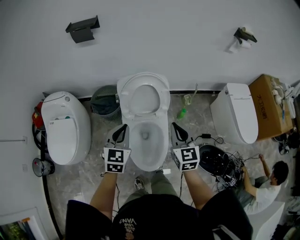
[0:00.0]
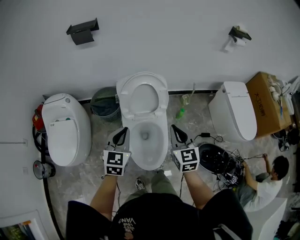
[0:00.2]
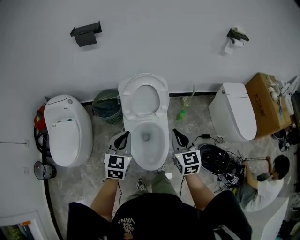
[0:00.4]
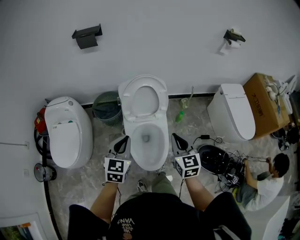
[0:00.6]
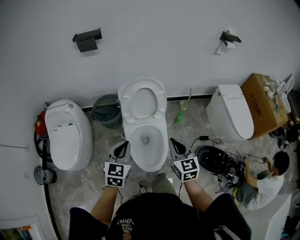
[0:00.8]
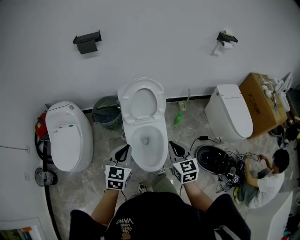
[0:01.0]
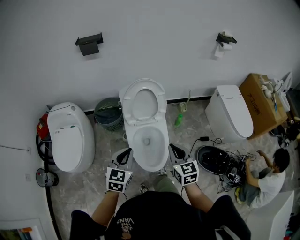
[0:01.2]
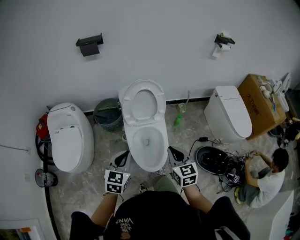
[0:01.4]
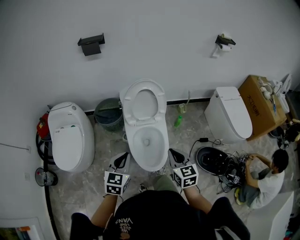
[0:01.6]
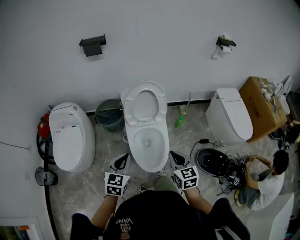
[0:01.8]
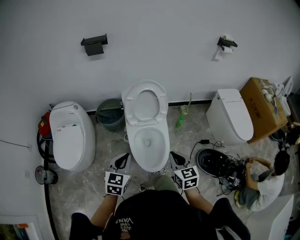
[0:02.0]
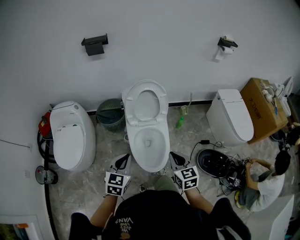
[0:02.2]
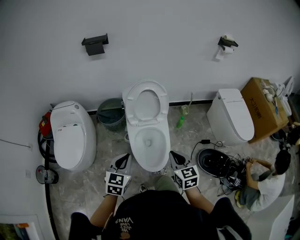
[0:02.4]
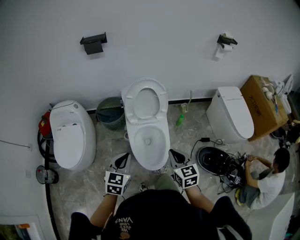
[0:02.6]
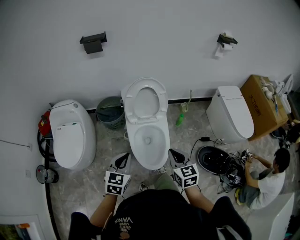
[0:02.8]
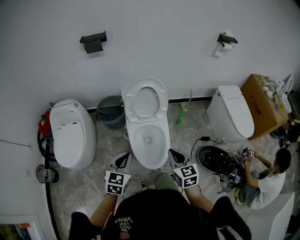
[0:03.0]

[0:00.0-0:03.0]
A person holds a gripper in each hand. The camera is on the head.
0:00.0 to 0:01.6: Both grippers travel together backward, roughly 20 cm.
0:01.6 to 0:03.0: The grippers move only a little.

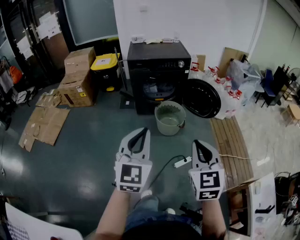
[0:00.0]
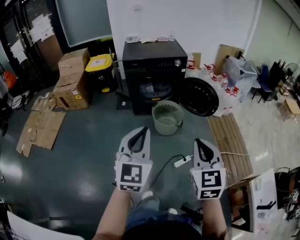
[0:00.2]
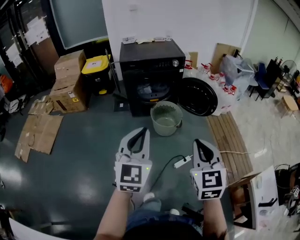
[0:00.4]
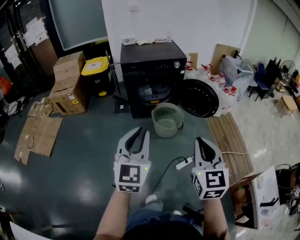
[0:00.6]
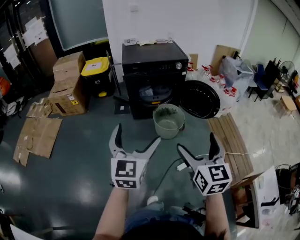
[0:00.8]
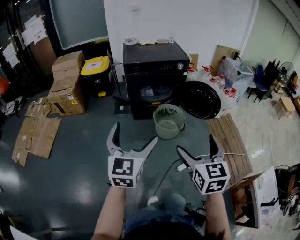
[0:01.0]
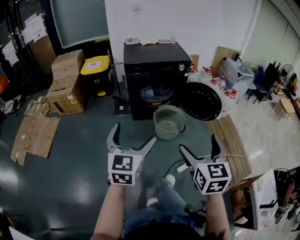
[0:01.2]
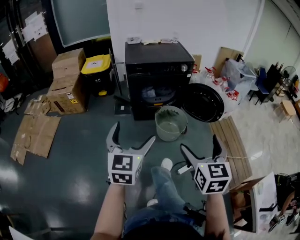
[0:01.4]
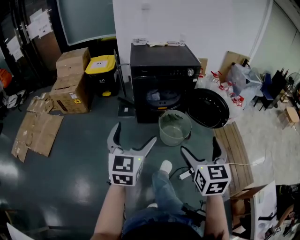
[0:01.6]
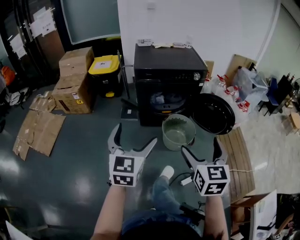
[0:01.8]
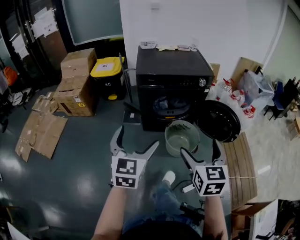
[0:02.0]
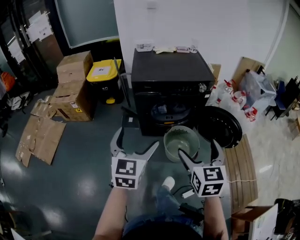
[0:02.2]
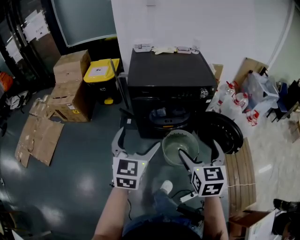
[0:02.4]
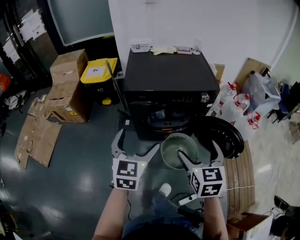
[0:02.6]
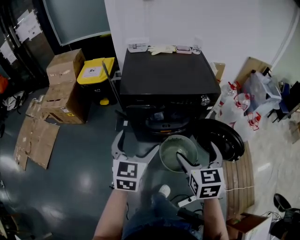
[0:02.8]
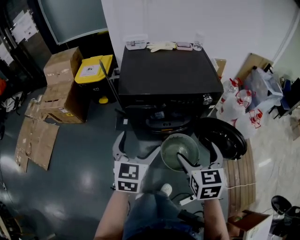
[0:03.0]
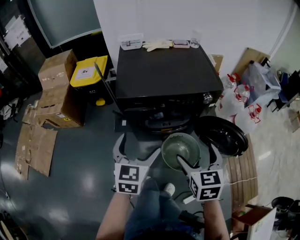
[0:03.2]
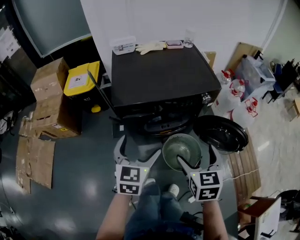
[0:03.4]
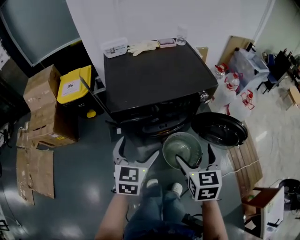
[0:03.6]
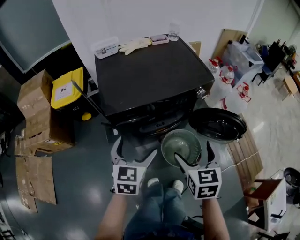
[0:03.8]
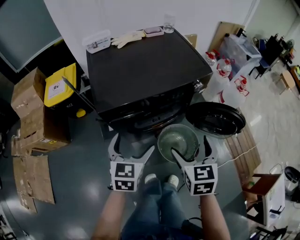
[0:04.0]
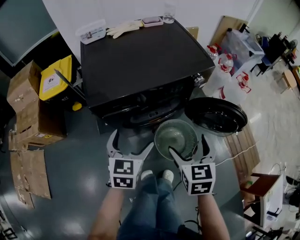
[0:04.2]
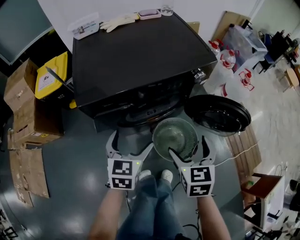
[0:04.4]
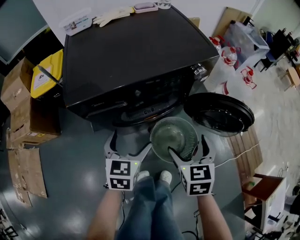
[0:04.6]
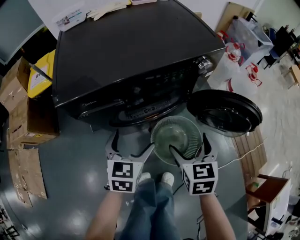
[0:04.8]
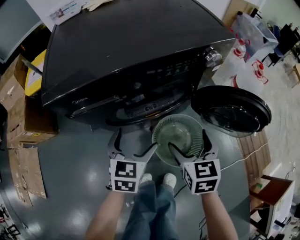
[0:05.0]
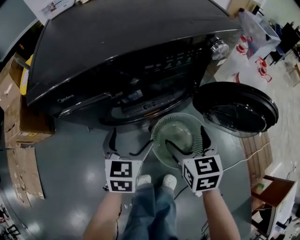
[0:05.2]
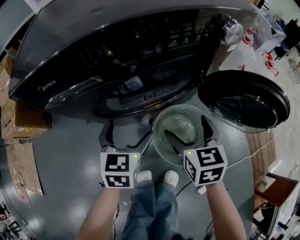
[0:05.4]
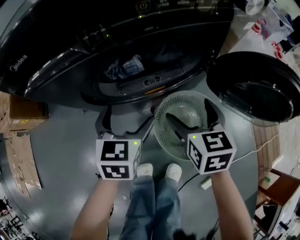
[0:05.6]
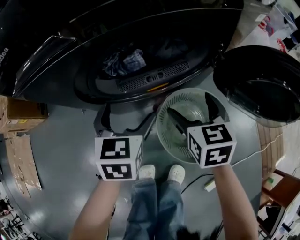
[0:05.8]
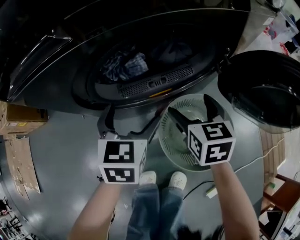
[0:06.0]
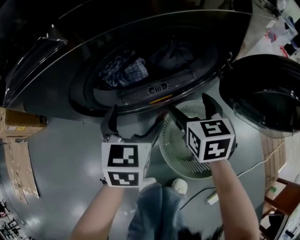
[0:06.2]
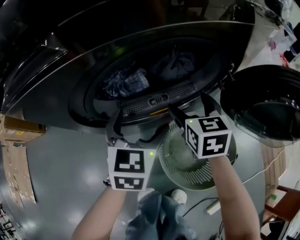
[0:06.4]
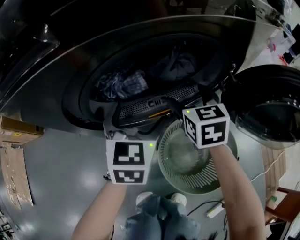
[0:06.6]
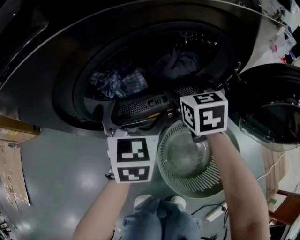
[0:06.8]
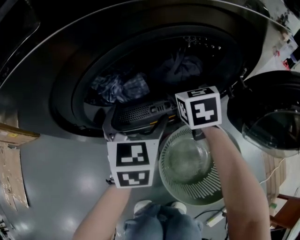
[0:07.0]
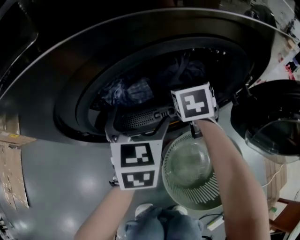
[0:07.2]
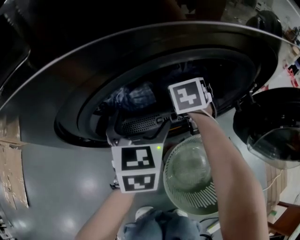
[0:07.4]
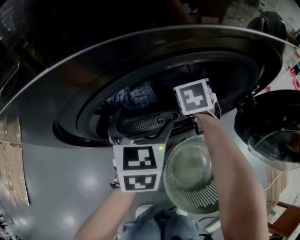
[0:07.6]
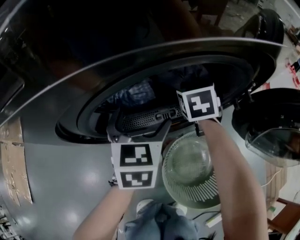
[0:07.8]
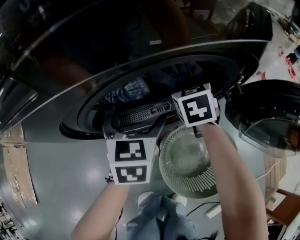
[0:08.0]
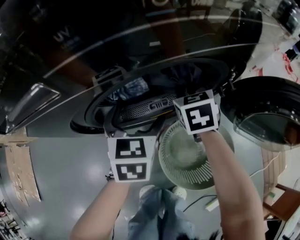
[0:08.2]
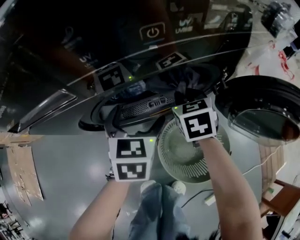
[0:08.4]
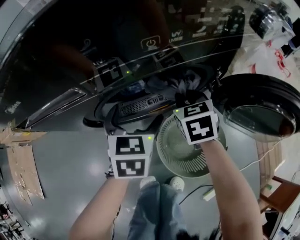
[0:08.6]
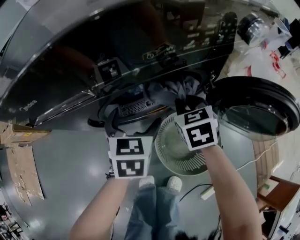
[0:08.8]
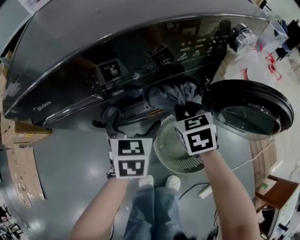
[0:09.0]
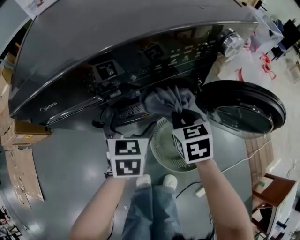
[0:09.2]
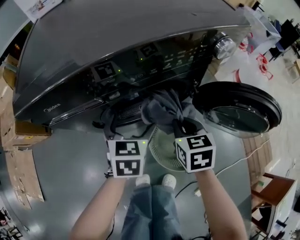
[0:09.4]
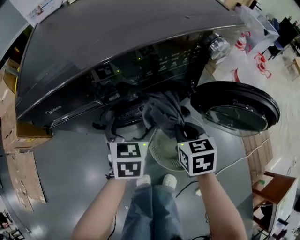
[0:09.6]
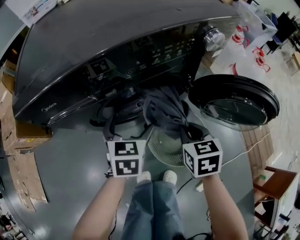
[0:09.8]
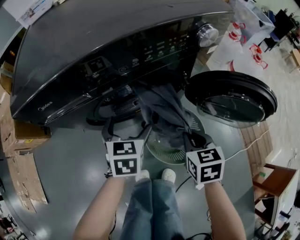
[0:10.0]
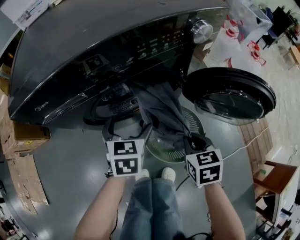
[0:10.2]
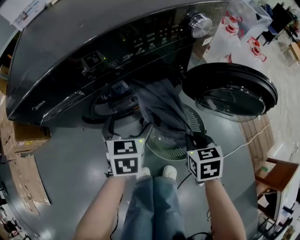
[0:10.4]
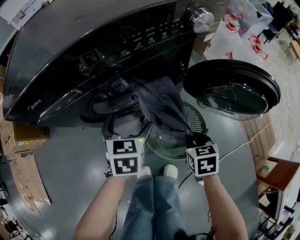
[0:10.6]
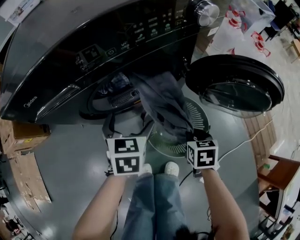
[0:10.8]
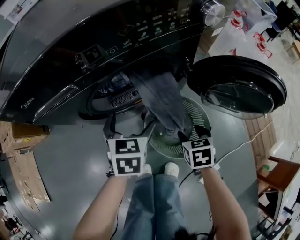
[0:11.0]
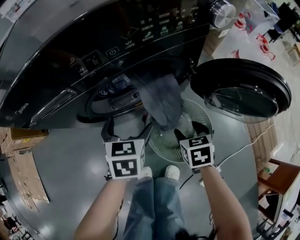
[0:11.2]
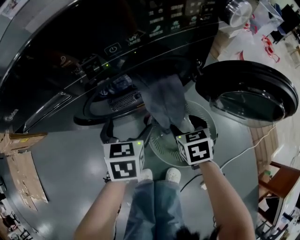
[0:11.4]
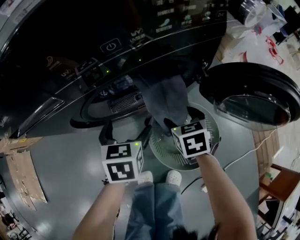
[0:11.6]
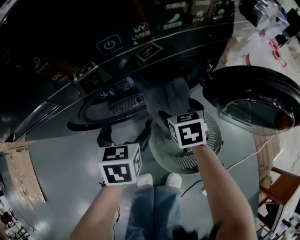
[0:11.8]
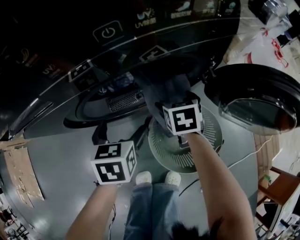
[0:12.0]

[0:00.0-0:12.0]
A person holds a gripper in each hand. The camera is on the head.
0:00.0 to 0:01.6: Both grippers move forward and to the left, roughly 20 cm. The right gripper opens. The left gripper opens up.
0:01.6 to 0:03.0: The two grippers go approximately 40 cm forward.
0:03.0 to 0:04.4: Both grippers travel together downward and forward, about 15 cm.
0:04.4 to 0:06.0: The right gripper moves downward and forward, about 40 cm; the left gripper shifts approximately 30 cm downward.
0:06.0 to 0:07.6: The right gripper moves forward and downward, about 25 cm, swivels about 20 degrees, and closes its fingers; the left gripper shifts roughly 10 cm forward.
0:07.6 to 0:09.0: The right gripper moves backward and upward, about 25 cm. The left gripper heads upward and backward, covering roughly 15 cm.
0:09.0 to 0:10.4: The right gripper moves backward and to the right, some 20 cm; the left gripper shifts by roughly 5 cm.
0:10.4 to 0:12.0: The right gripper goes approximately 25 cm forward, downward and to the left, and opens. The left gripper shifts roughly 10 cm downward and to the left.

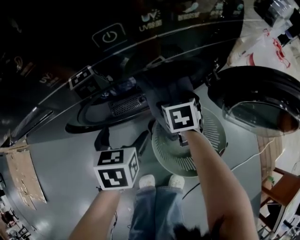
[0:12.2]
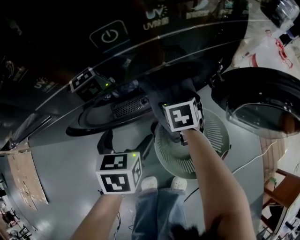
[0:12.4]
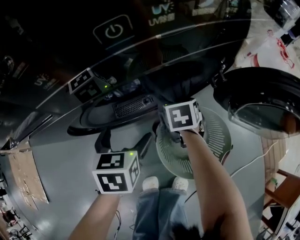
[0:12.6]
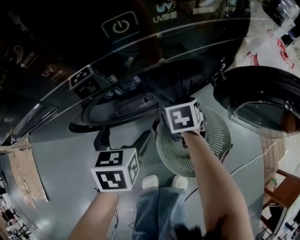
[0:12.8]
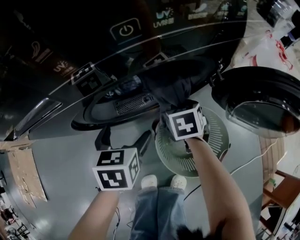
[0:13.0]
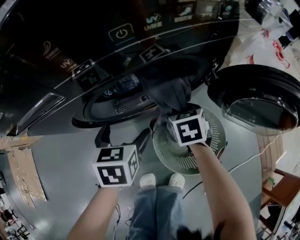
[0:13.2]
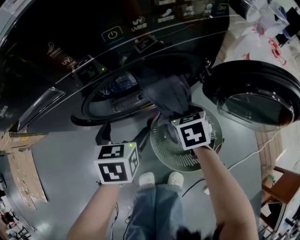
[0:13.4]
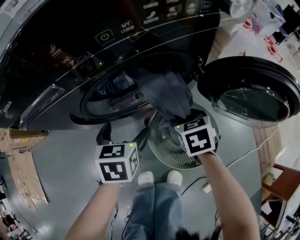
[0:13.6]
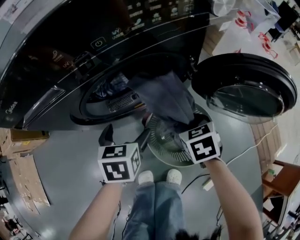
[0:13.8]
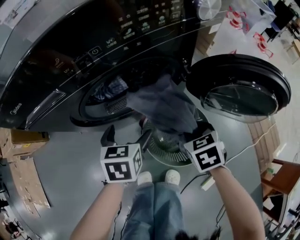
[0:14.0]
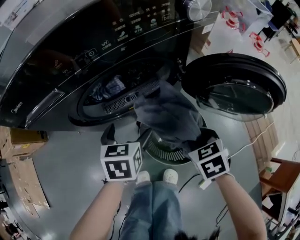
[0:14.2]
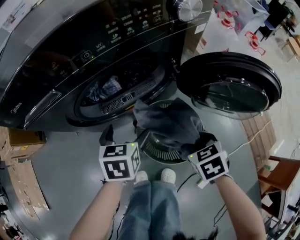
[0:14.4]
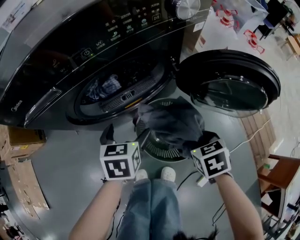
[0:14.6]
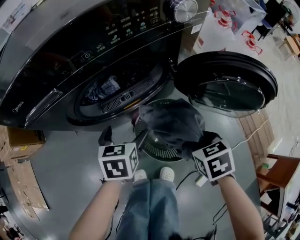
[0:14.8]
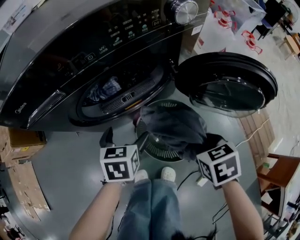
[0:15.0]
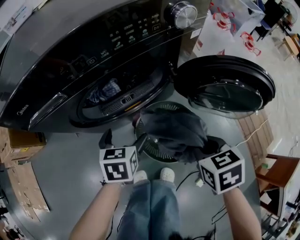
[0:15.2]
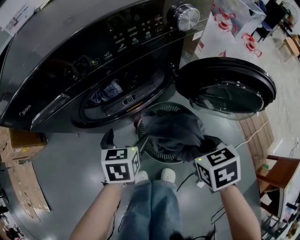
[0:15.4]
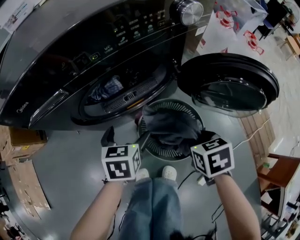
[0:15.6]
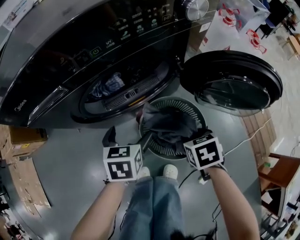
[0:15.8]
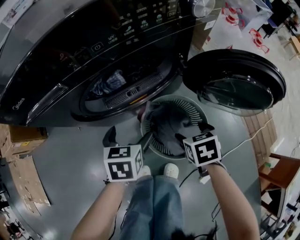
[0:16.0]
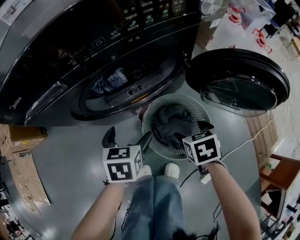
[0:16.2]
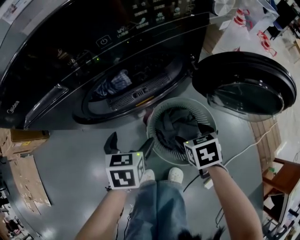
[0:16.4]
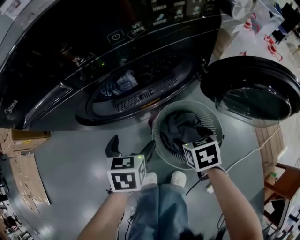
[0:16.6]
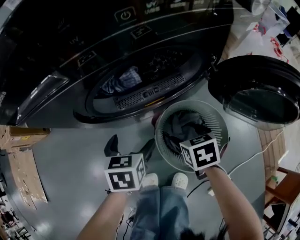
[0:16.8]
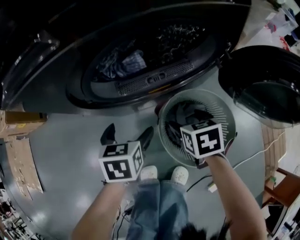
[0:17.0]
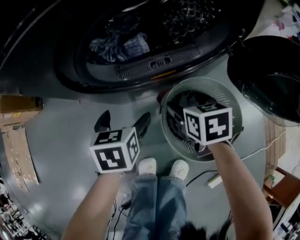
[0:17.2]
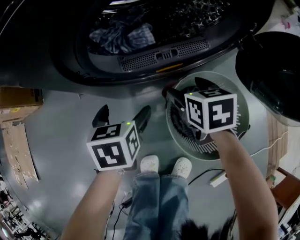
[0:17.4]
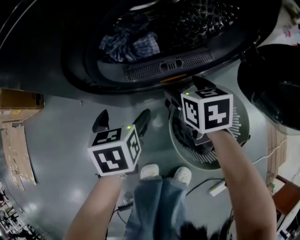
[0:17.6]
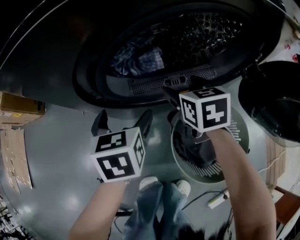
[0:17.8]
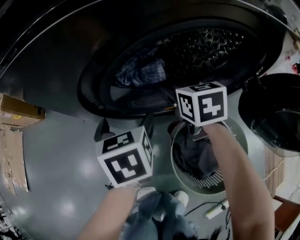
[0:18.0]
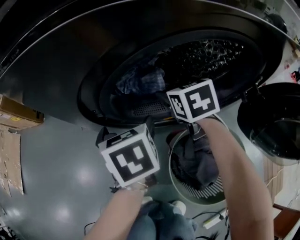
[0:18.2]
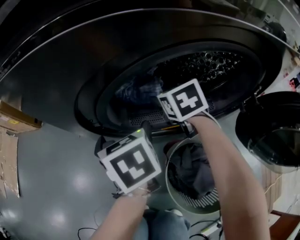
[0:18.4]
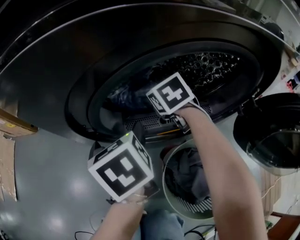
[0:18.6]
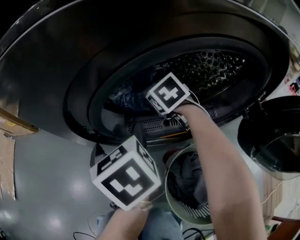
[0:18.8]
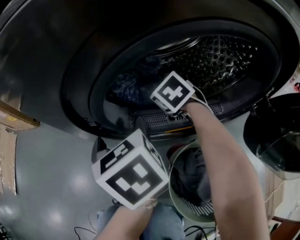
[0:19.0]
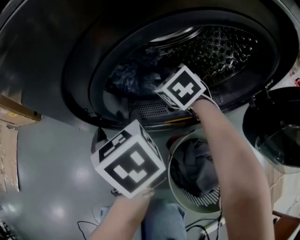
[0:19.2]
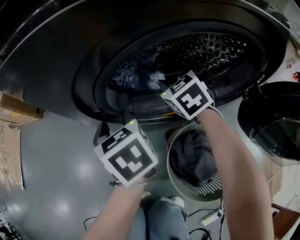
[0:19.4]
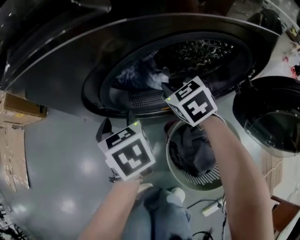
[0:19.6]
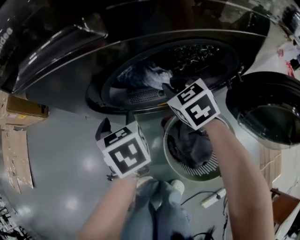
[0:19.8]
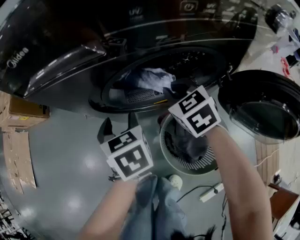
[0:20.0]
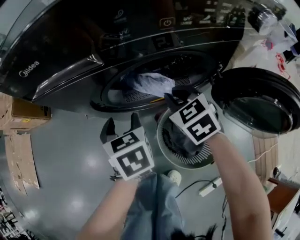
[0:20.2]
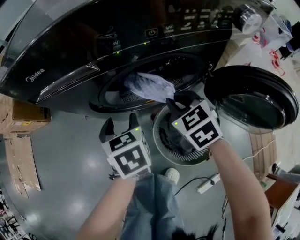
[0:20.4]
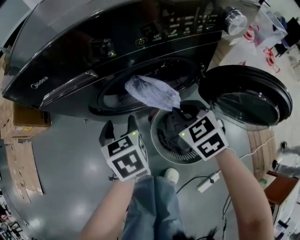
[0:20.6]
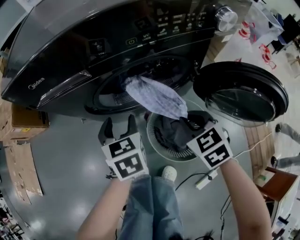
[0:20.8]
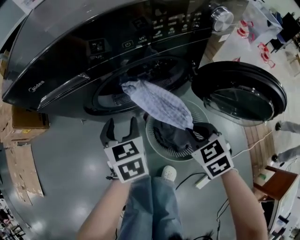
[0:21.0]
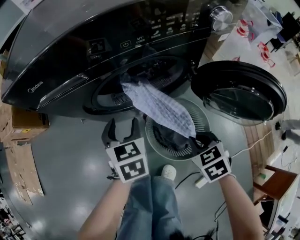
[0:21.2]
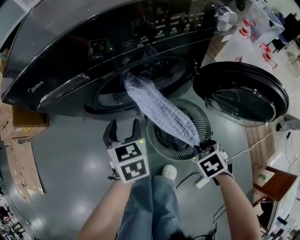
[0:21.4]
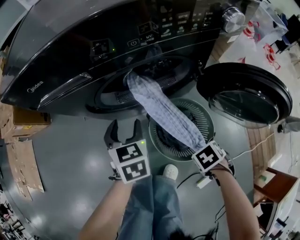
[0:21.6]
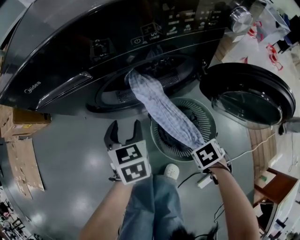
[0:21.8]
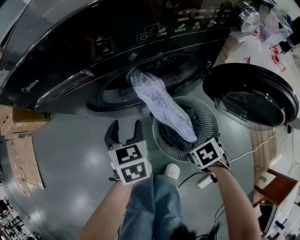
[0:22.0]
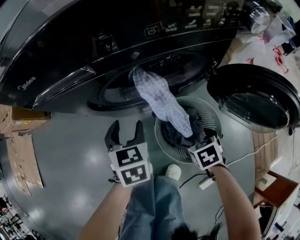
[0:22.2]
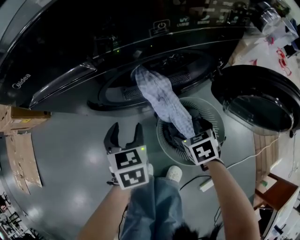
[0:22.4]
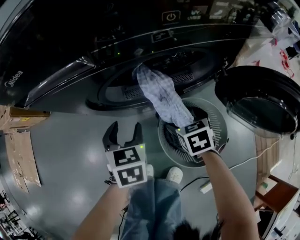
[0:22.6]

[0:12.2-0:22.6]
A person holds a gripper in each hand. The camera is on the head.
0:12.2 to 0:13.6: The right gripper goes approximately 10 cm backward and upward, and closes its fingers.
0:13.6 to 0:15.2: The right gripper moves backward, upward and to the right, some 20 cm; the left gripper shifts by some 5 cm.
0:15.2 to 0:16.6: The right gripper shifts approximately 20 cm downward and to the left, and opens up; the left gripper moves downward and to the left, roughly 10 cm.
0:16.6 to 0:18.2: The left gripper shifts about 15 cm forward, to the left and downward, and rotates about 30 degrees. The right gripper moves forward, roughly 25 cm, and rotates approximately 30 degrees.
0:18.2 to 0:19.6: The right gripper goes downward and returns, about 10 cm each way, and closes its fingers, while the left gripper closes its fingers.
0:19.6 to 0:21.2: The left gripper shifts roughly 15 cm upward, backward and to the right, and turns by some 30 degrees, while the right gripper is displaced backward by about 30 cm, and changes its angle by approximately 30 degrees.
0:21.2 to 0:22.6: The right gripper changes place by some 20 cm, and opens up. The left gripper travels downward by approximately 5 cm.
